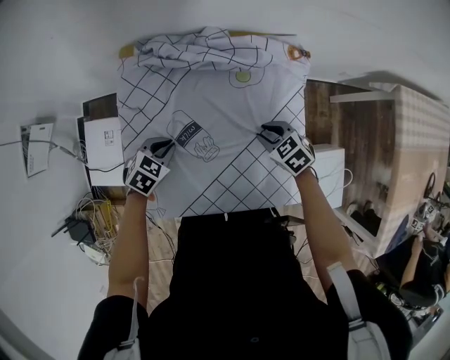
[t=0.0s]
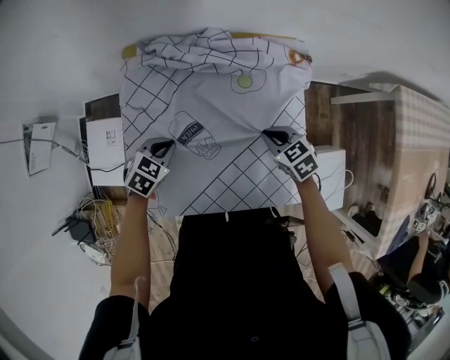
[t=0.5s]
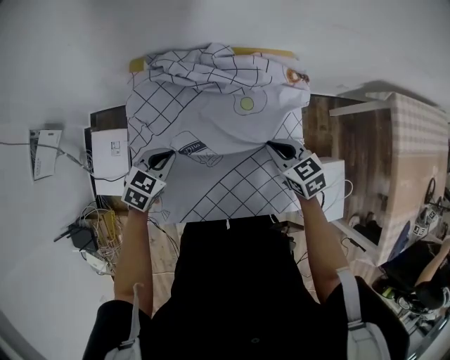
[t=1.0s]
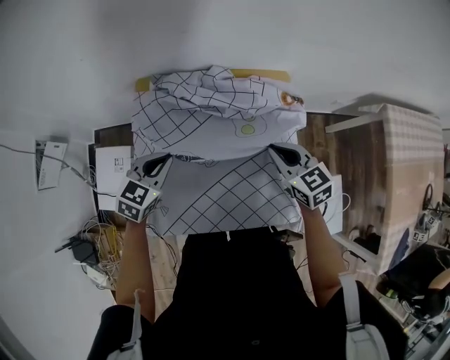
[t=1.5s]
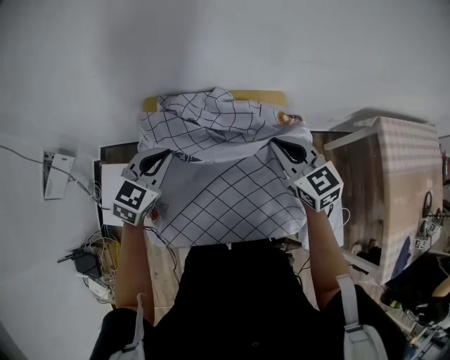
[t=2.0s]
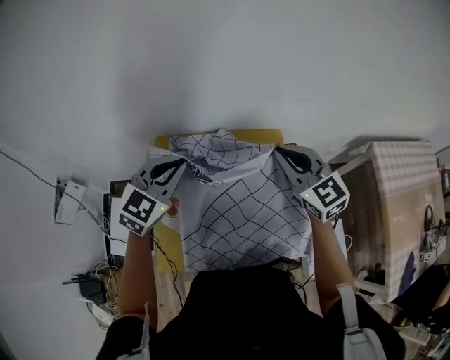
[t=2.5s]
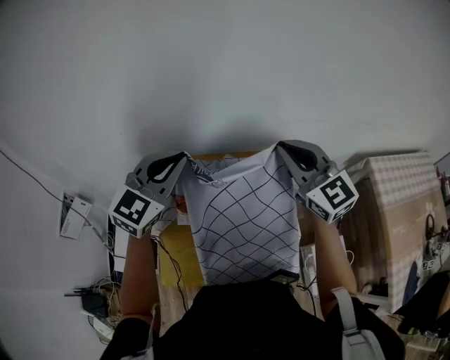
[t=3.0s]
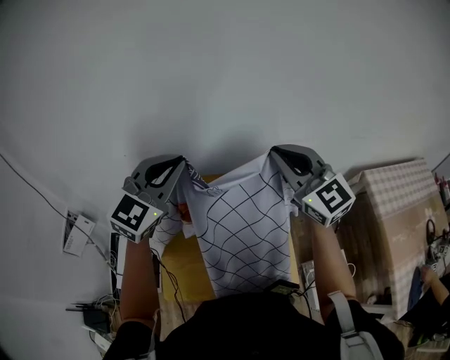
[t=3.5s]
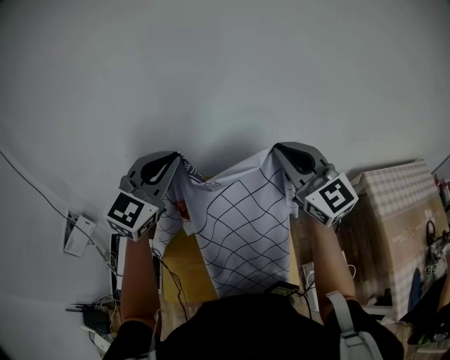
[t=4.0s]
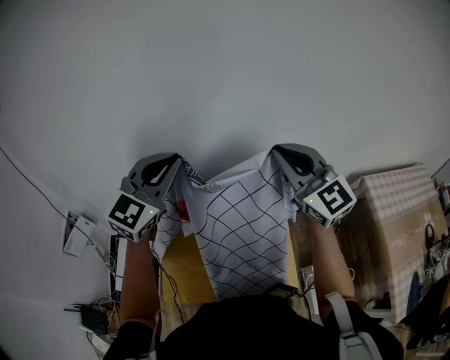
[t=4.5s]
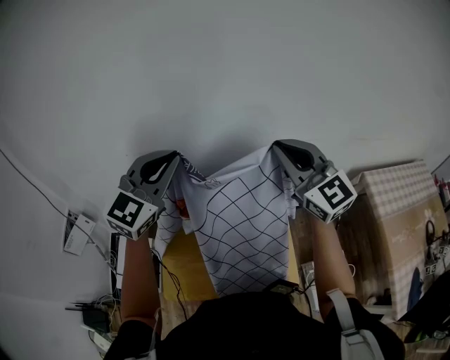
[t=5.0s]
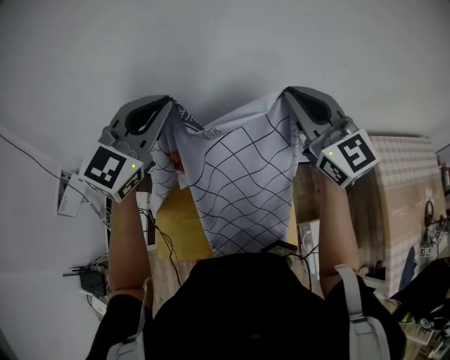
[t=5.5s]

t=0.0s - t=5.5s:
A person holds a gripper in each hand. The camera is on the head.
t=0.0s - t=2.0s: Both grippers travel together upward, some 25 cm. The left gripper turns by roughly 30 degrees, while the right gripper tips its fingers upward by some 40 degrees, and closes its fingers.
t=2.0s - t=3.5s: The two grippers go some 25 cm upward. The left gripper turns by about 30 degrees. The right gripper swivels some 30 degrees.
t=3.5s - t=5.5s: The grippers make only small movements.

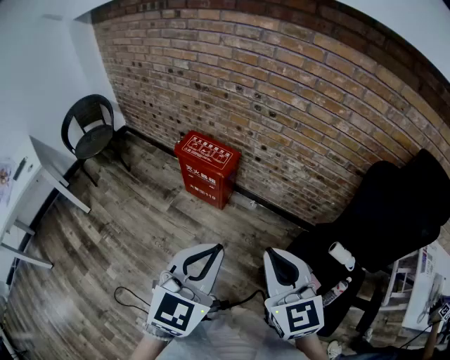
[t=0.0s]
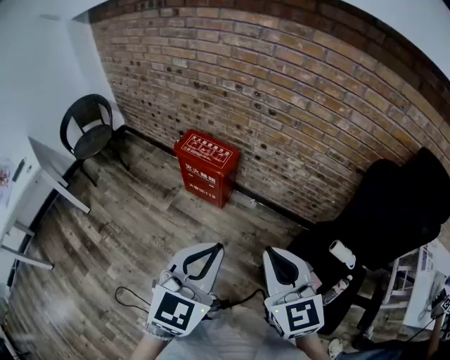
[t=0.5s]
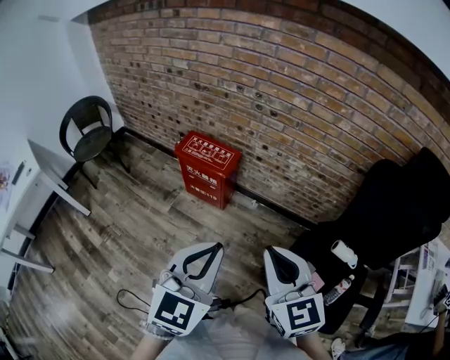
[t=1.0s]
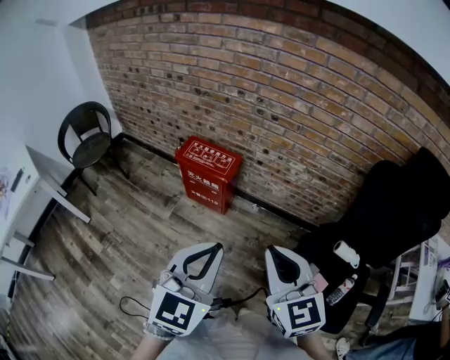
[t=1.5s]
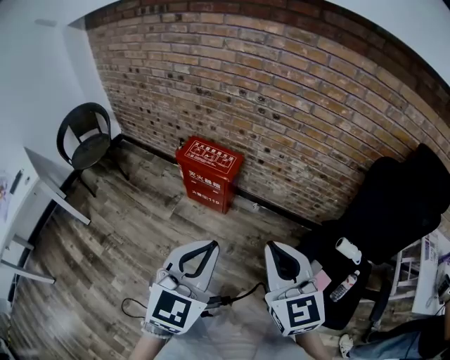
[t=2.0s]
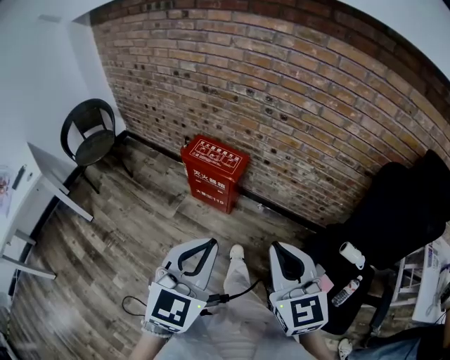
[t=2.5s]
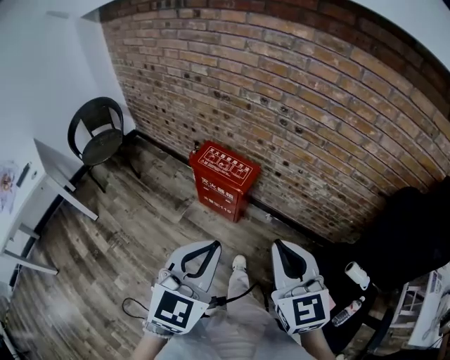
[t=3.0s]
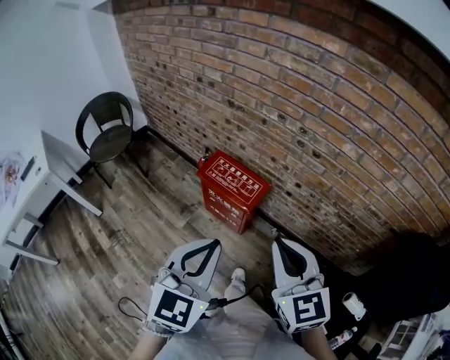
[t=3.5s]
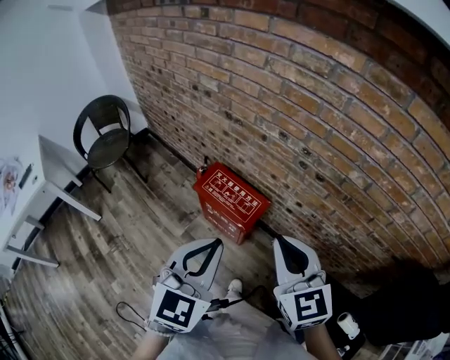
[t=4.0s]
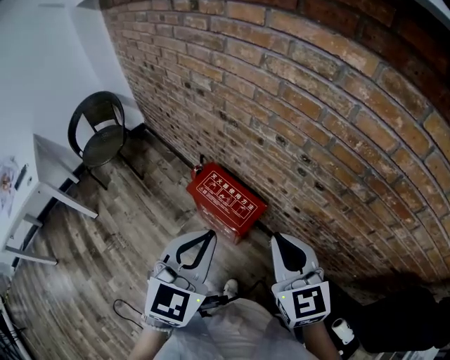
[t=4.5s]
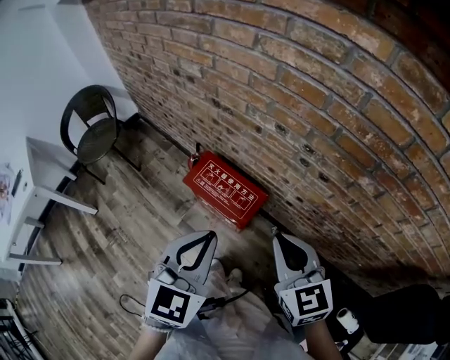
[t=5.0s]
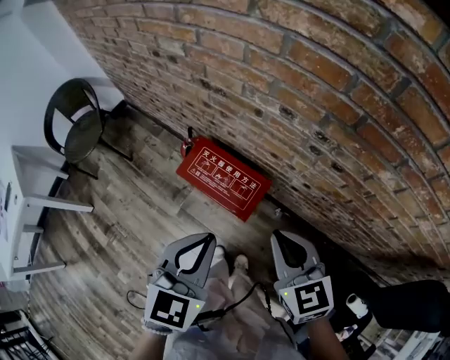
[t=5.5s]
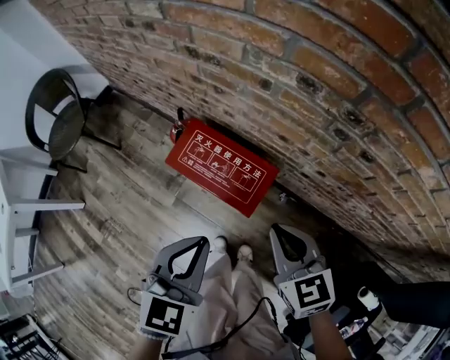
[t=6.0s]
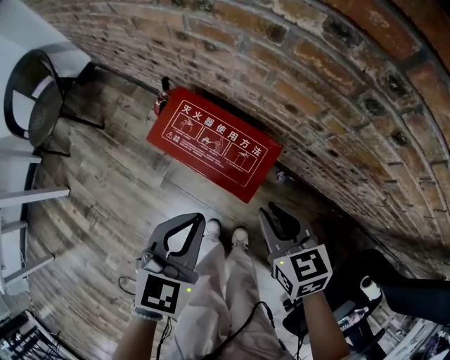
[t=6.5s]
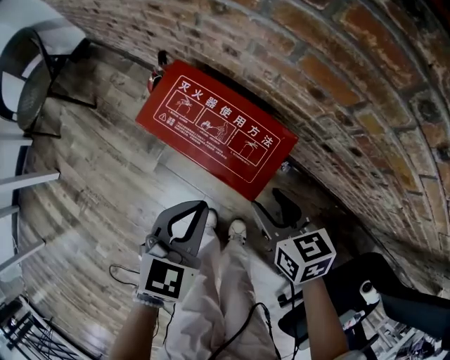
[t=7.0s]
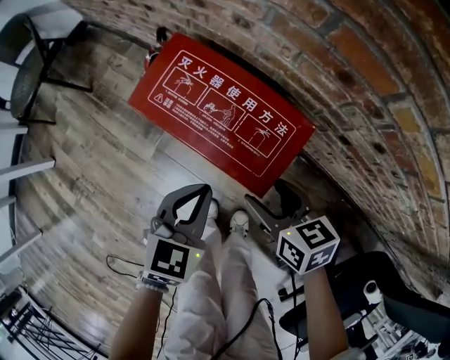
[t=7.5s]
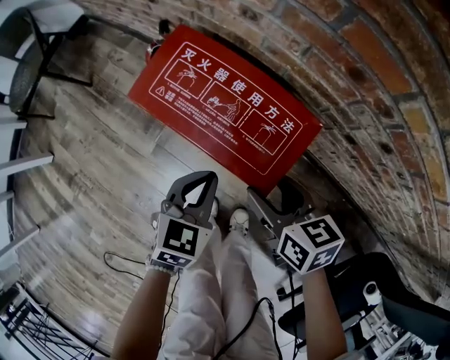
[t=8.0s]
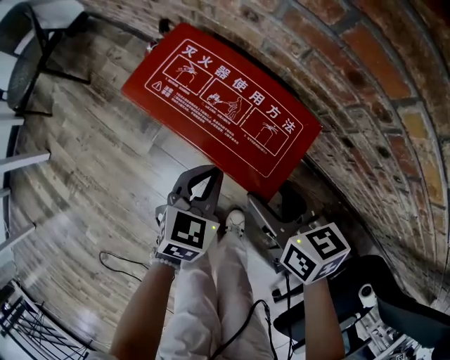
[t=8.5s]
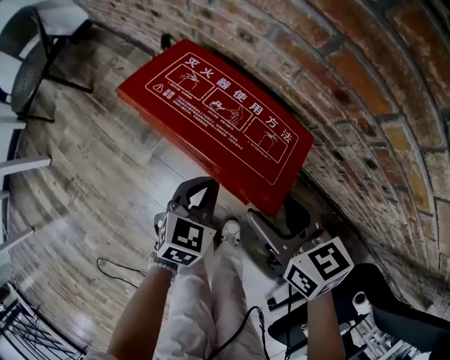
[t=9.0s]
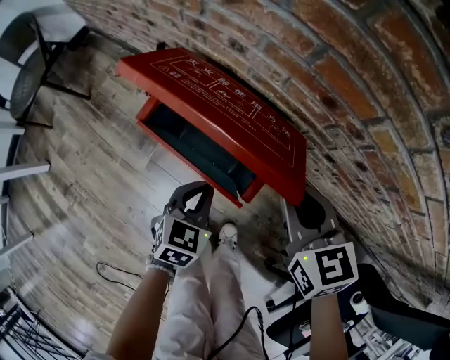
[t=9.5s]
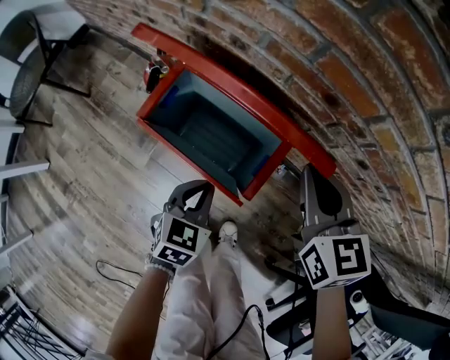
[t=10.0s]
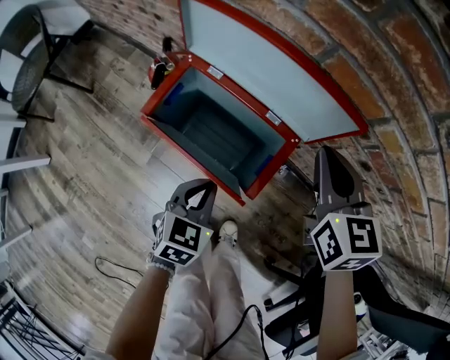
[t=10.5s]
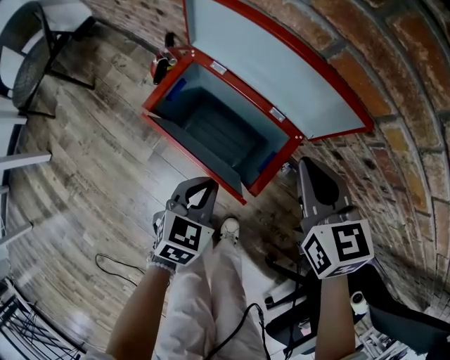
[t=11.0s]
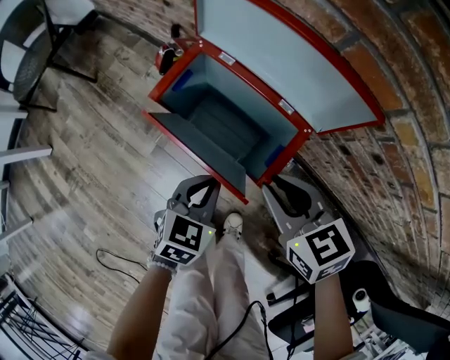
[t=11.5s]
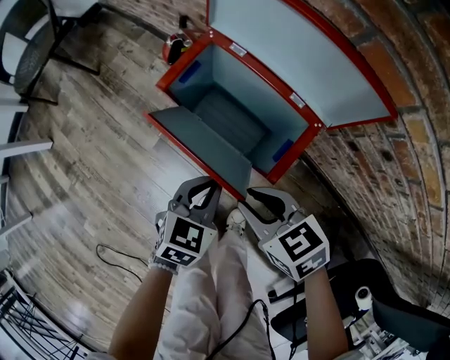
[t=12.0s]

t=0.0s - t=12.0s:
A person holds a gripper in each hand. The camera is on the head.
t=0.0s - t=2.0s: Both grippers travel together to the left, approximately 5 cm.
t=2.0s - t=4.0s: The two grippers go approximately 35 cm forward.
t=4.0s - t=6.0s: The two grippers go approximately 25 cm downward and forward. The right gripper rotates approximately 20 degrees.
t=6.0s - t=8.0s: Both grippers move downward, about 30 cm. The right gripper rotates some 30 degrees, and opens up.
t=8.0s - t=10.0s: The right gripper moves upward, forward and to the right, approximately 15 cm, turns by some 30 degrees, and closes its fingers.
t=10.0s - t=12.0s: The right gripper ends up about 20 cm from where it was, and rotates roughly 40 degrees.

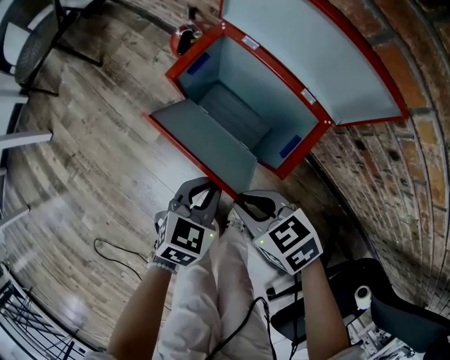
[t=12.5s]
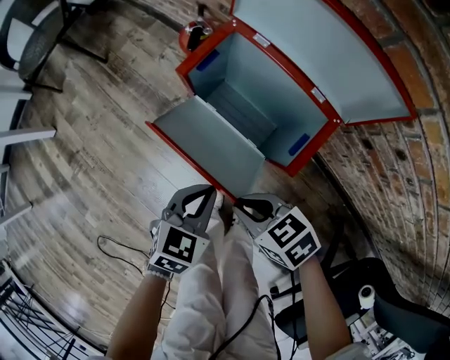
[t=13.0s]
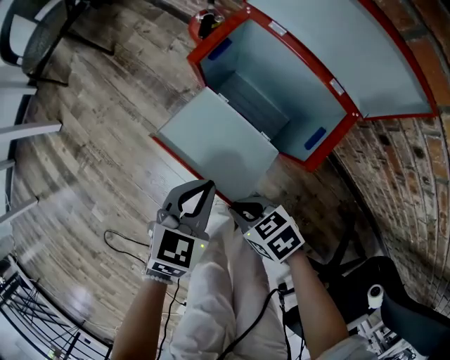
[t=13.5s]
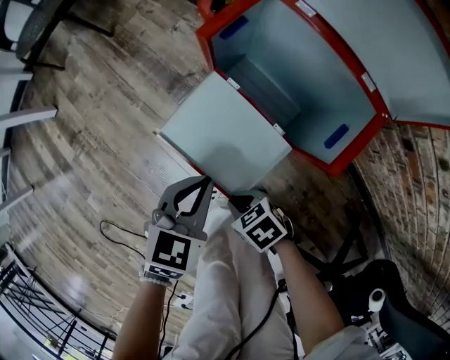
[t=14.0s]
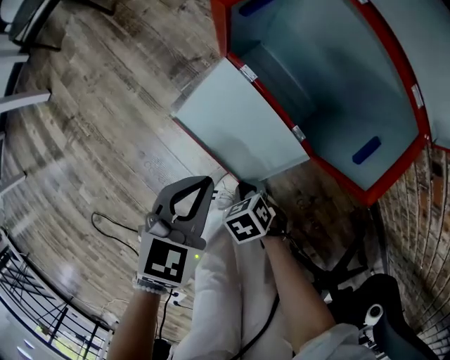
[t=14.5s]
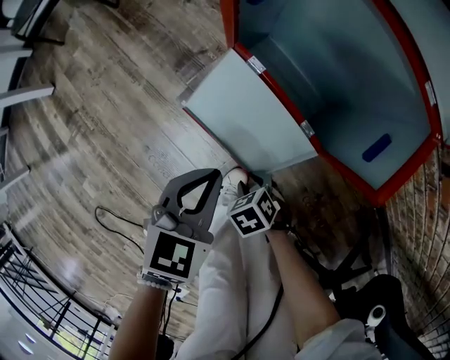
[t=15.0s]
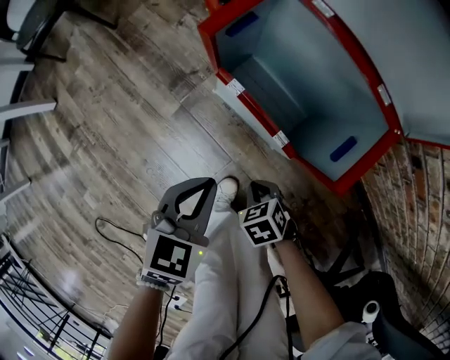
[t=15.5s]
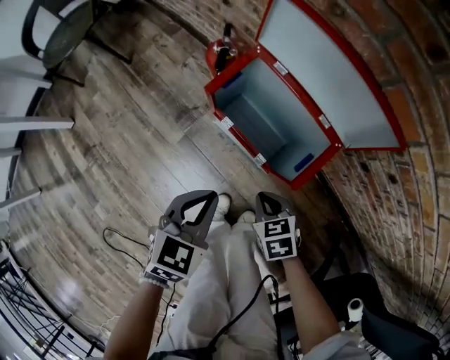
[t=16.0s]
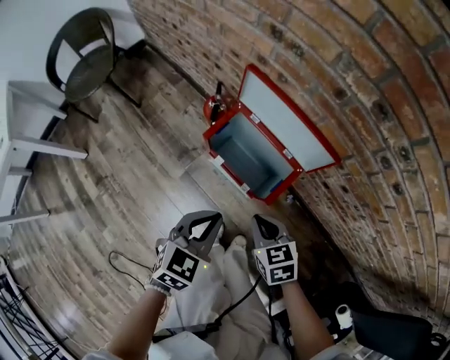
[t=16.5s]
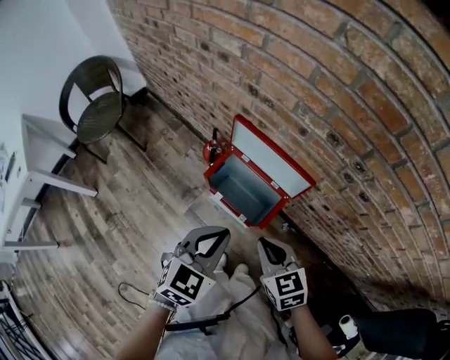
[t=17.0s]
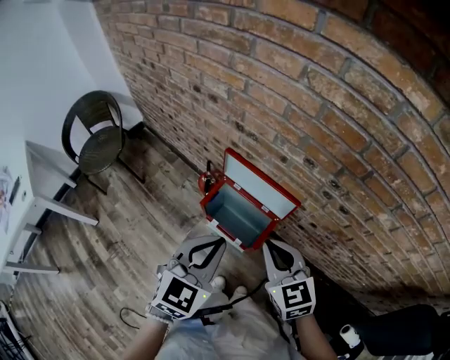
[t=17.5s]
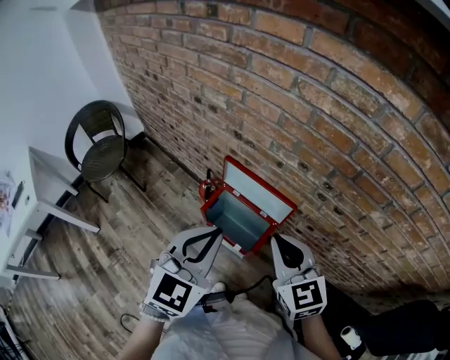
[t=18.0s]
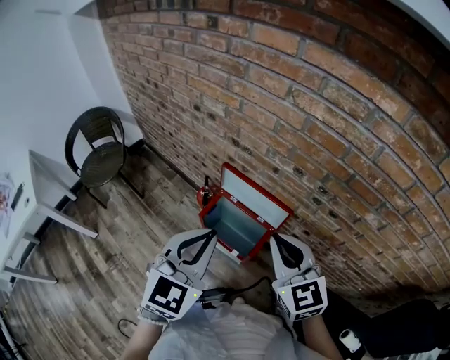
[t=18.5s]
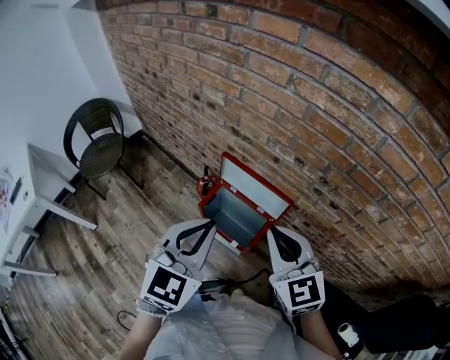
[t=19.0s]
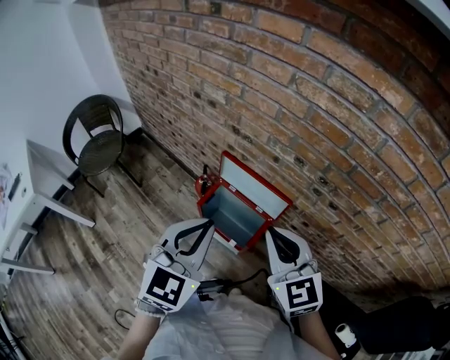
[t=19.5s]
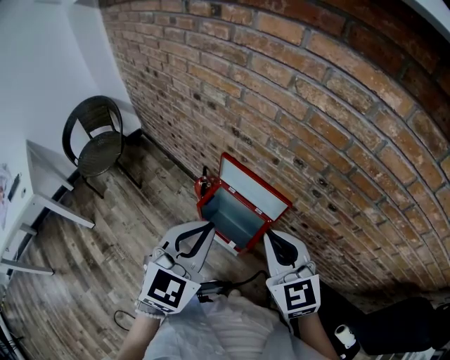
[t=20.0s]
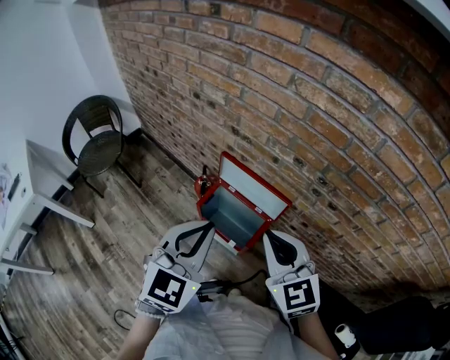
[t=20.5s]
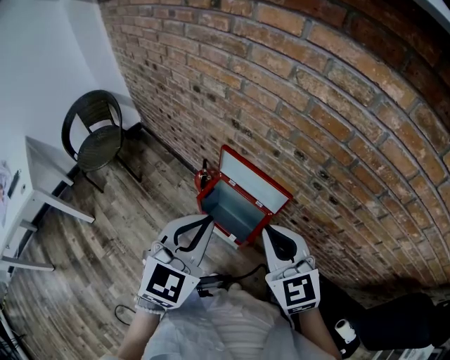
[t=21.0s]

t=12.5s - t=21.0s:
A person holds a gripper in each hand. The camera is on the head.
t=12.5s - t=14.5s: The left gripper ends up about 15 cm from where it was, while the right gripper moves downward, some 30 cm, and turns by some 30 degrees.
t=14.5s - t=16.5s: Both grippers move upward, approximately 35 cm. The right gripper swivels approximately 40 degrees.
t=16.5s - t=19.0s: Both grippers travel together upward, some 35 cm. The right gripper angles its fingers upward, by approximately 30 degrees, while the left gripper changes its angle by about 30 degrees.
t=19.0s - t=21.0s: The grippers stay close to where they were, moving slightly.

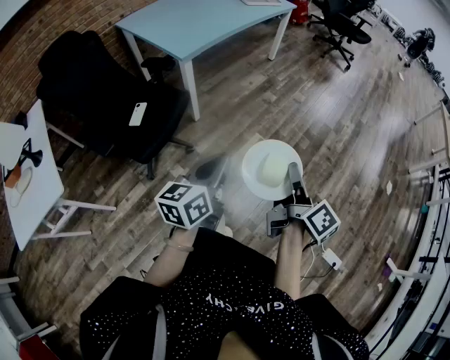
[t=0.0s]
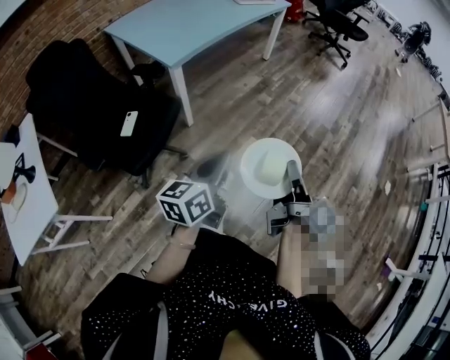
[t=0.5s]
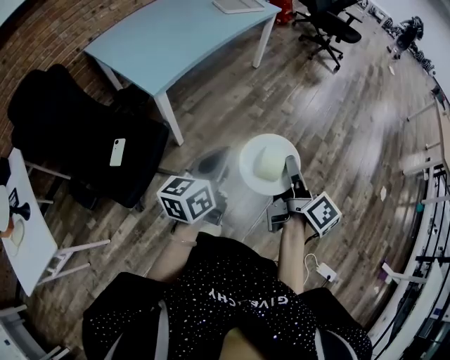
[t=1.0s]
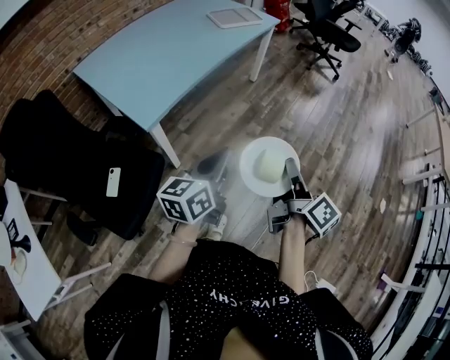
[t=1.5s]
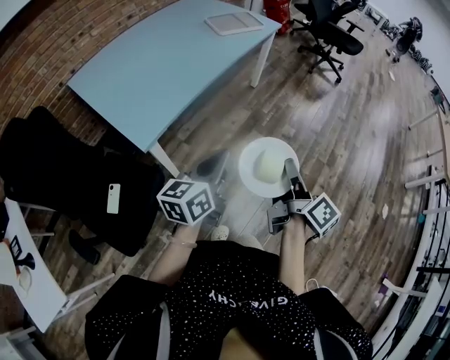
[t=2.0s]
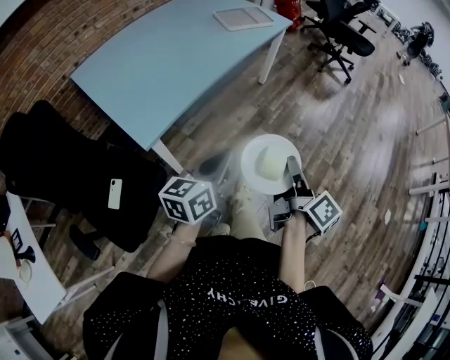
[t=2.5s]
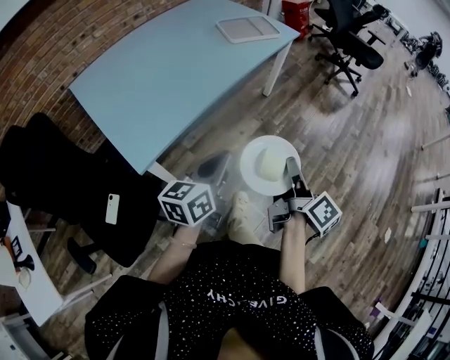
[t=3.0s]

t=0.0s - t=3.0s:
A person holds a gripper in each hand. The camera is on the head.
t=0.0s - t=1.5s: Both grippers move forward, about 40 cm.
t=1.5s - t=3.0s: The two grippers go about 25 cm forward.
